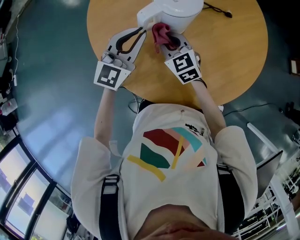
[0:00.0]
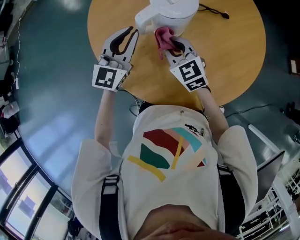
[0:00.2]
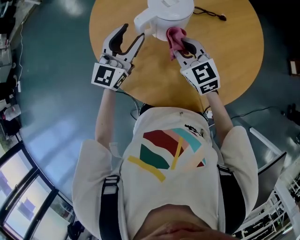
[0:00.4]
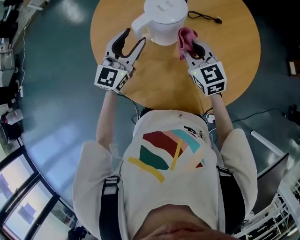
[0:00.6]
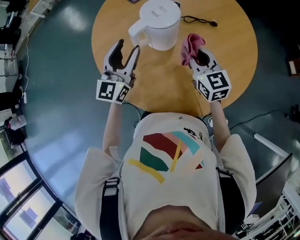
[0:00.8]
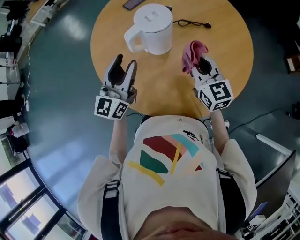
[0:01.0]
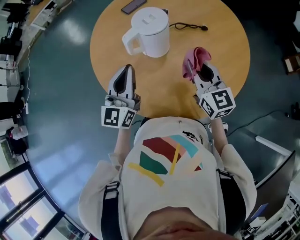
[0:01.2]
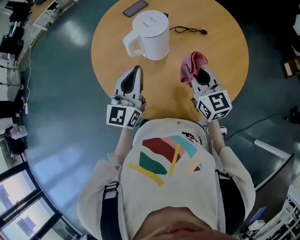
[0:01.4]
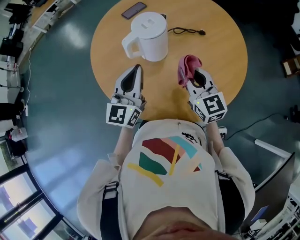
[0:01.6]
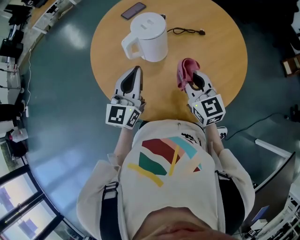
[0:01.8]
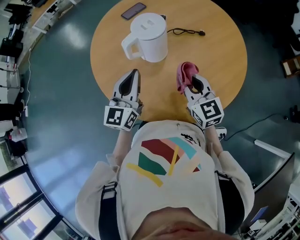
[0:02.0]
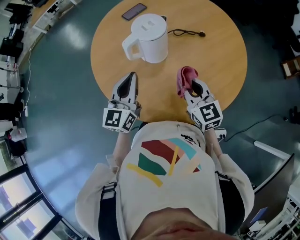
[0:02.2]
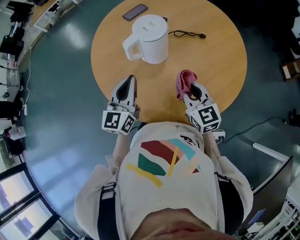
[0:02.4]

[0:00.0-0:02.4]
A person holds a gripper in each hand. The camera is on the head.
0:00.0 to 0:01.2: The left gripper travels backward and upward by some 15 cm, changes its angle by approximately 20 degrees, and opens, then closes again. The right gripper shifts some 25 cm to the right, upward and backward, and rotates some 30 degrees.
0:01.2 to 0:02.4: The right gripper ends up some 5 cm from where it was.

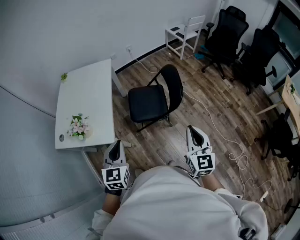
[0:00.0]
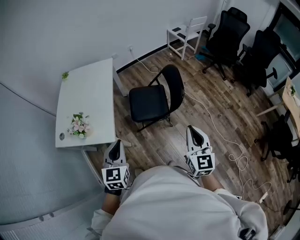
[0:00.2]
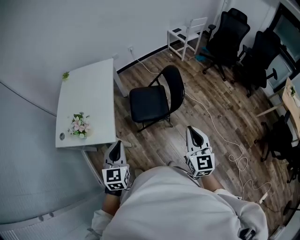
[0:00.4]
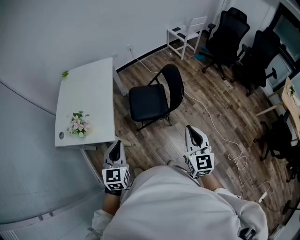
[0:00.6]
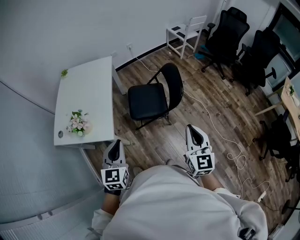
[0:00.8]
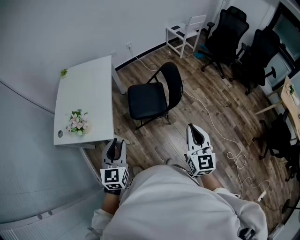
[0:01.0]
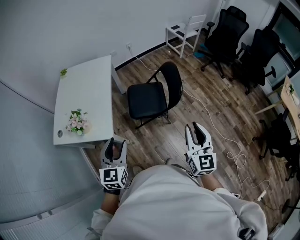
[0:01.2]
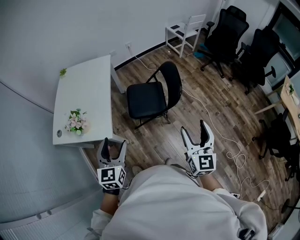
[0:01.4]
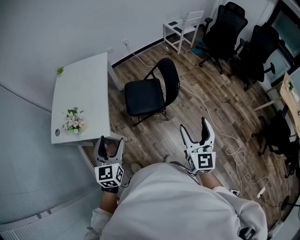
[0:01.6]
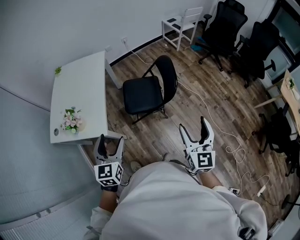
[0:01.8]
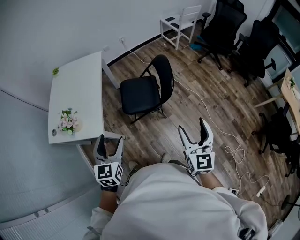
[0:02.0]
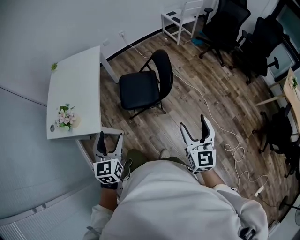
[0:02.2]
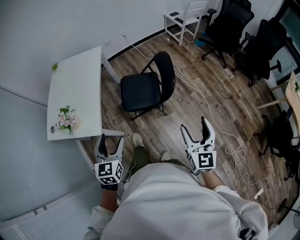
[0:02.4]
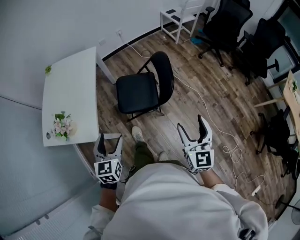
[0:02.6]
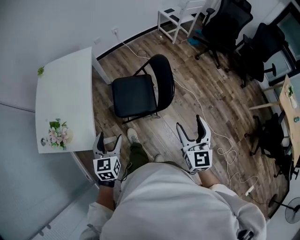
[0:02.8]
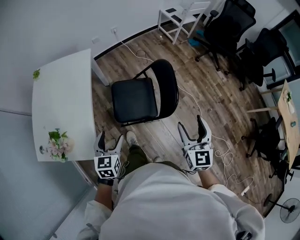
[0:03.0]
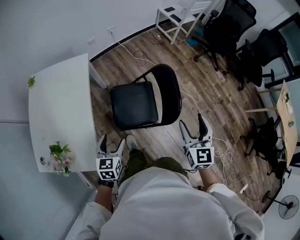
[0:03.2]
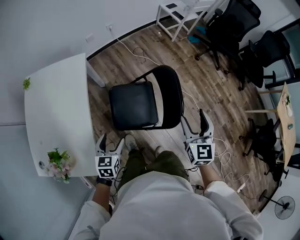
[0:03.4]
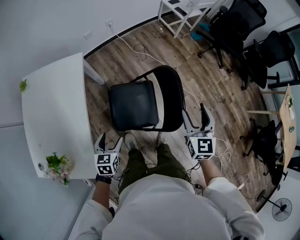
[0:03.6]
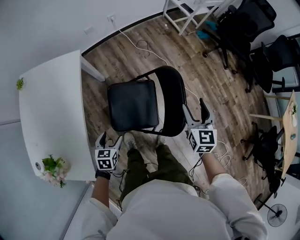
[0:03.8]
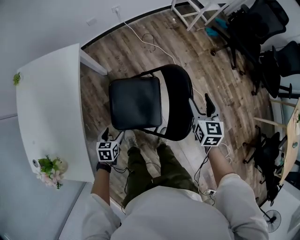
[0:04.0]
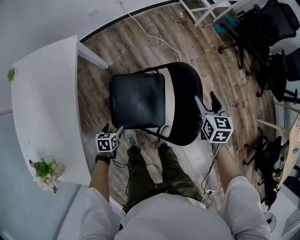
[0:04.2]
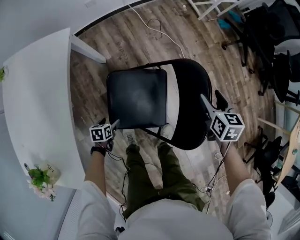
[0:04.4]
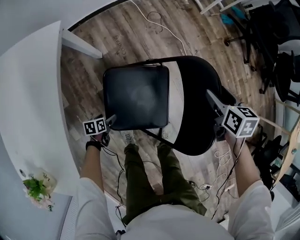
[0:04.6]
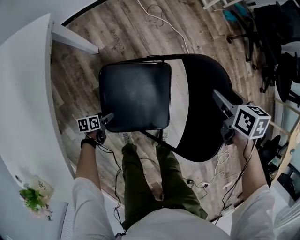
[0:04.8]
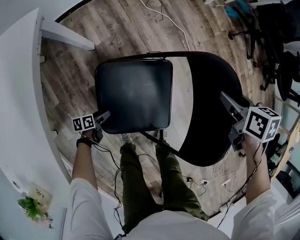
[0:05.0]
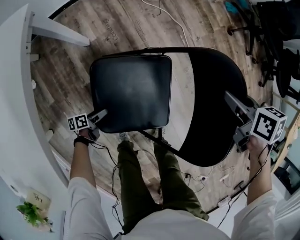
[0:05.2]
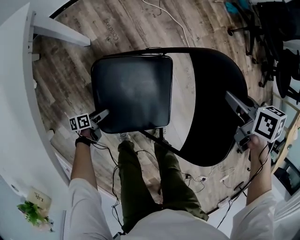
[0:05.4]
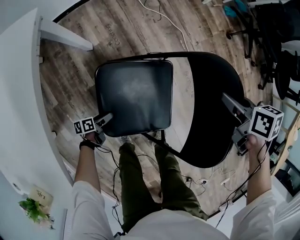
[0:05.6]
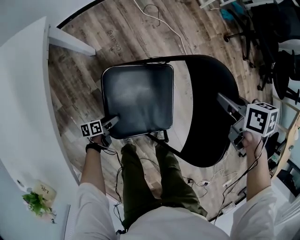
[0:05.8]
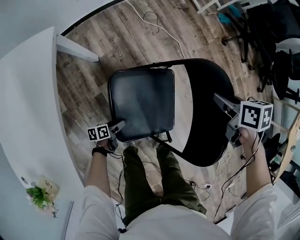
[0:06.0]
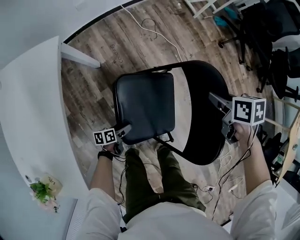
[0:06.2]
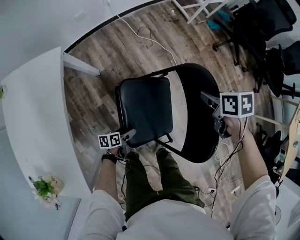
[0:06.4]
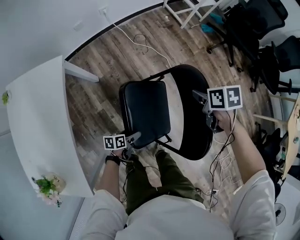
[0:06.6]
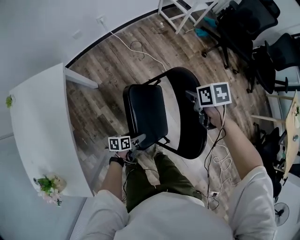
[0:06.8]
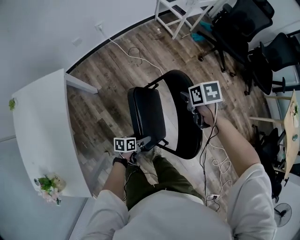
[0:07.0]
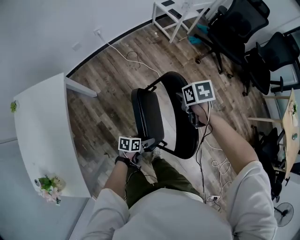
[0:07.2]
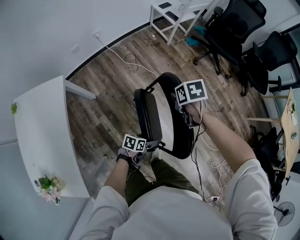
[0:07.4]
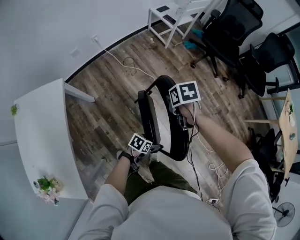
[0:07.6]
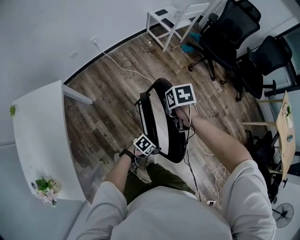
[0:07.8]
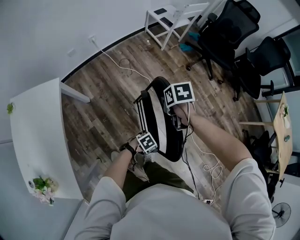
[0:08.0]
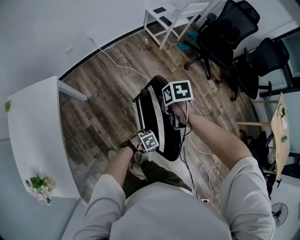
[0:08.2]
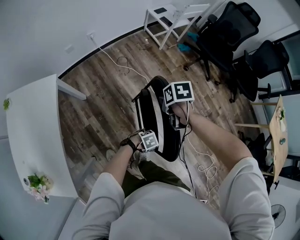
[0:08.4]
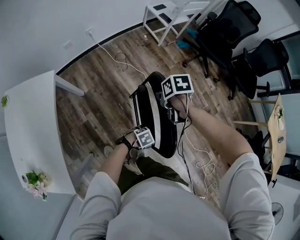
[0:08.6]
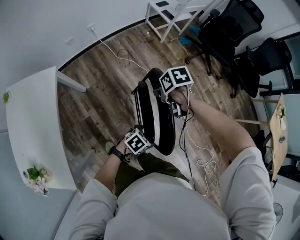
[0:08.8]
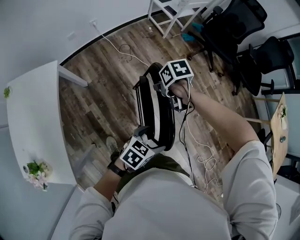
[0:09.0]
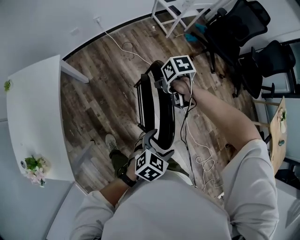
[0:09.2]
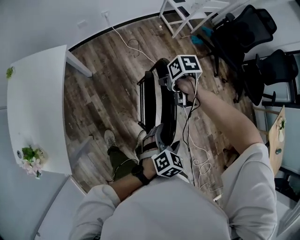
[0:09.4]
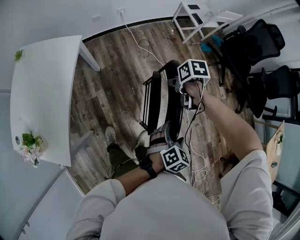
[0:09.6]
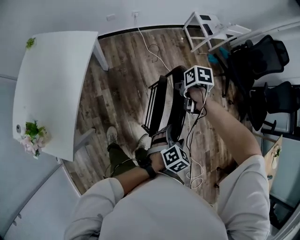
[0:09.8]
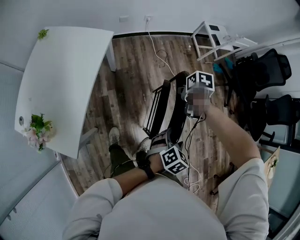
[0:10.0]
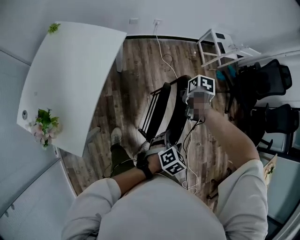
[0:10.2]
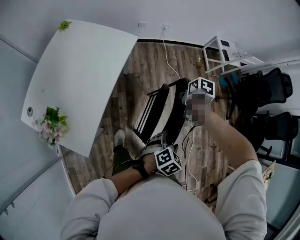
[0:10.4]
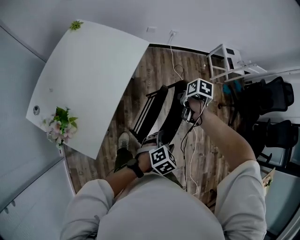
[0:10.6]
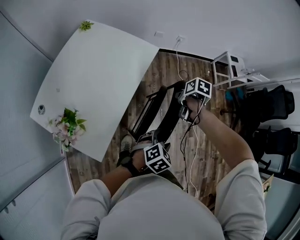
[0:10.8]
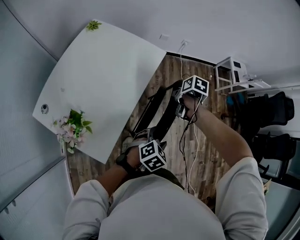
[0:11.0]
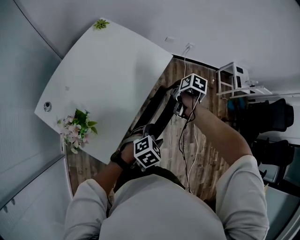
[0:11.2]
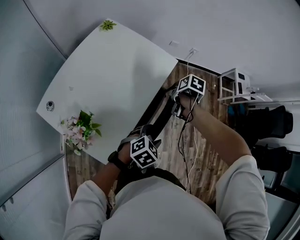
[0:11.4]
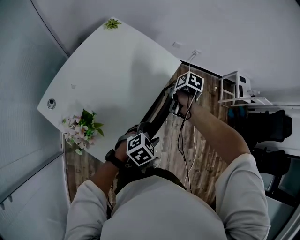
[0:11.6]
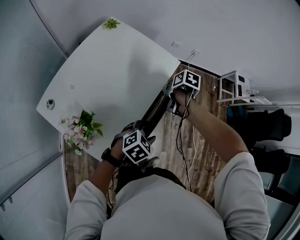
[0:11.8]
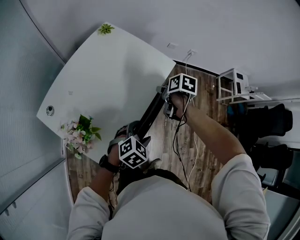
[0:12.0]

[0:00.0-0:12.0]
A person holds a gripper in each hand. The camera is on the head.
0:00.0 to 0:01.6: The left gripper opens its fingers. Meanwhile the right gripper opens.
0:01.6 to 0:03.0: The right gripper moves forward, about 25 cm. Meanwhile the left gripper moves forward and downward, about 25 cm.
0:03.0 to 0:04.4: The right gripper heads forward and downward, covering about 50 cm, and tilts its fingers approximately 30 degrees downward. Meanwhile the left gripper shifts some 50 cm downward and forward, and tips its fingers downward by roughly 30 degrees.
0:04.4 to 0:06.0: The left gripper goes some 5 cm downward, and rotates some 30 degrees. The right gripper turns by approximately 30 degrees, and closes.
0:06.0 to 0:07.6: The right gripper shifts roughly 10 cm upward; the left gripper moves some 40 cm, and rotates around the line of its fingers by approximately 50 degrees, clockwise from behind.
0:07.6 to 0:09.0: The left gripper moves upward, about 20 cm, and changes its angle by roughly 20 degrees.
0:09.0 to 0:10.4: The left gripper moves some 20 cm, and changes its angle by about 30 degrees. The right gripper shifts by approximately 25 cm.
0:10.4 to 0:12.0: The right gripper shifts by some 35 cm, and opens its fingers. Meanwhile the left gripper shifts by some 35 cm.

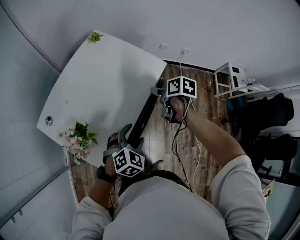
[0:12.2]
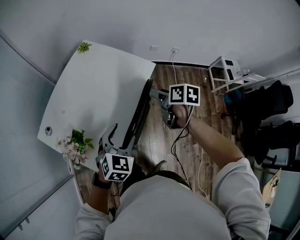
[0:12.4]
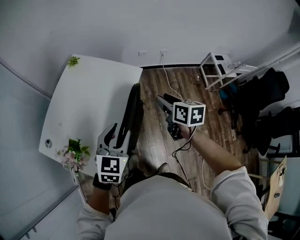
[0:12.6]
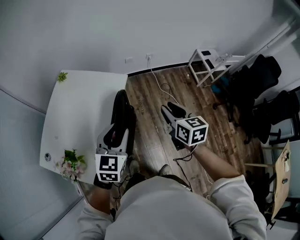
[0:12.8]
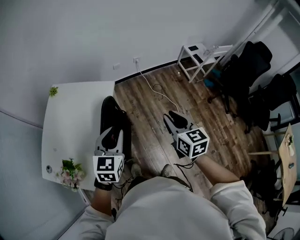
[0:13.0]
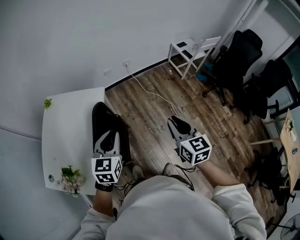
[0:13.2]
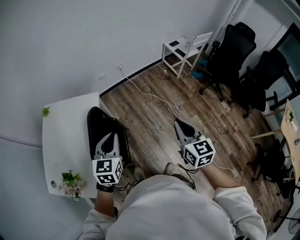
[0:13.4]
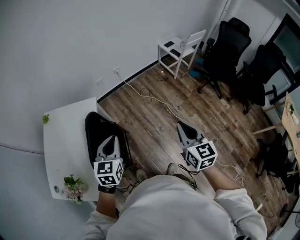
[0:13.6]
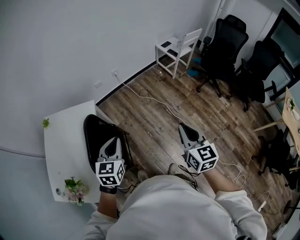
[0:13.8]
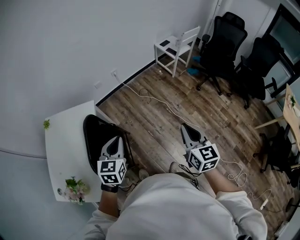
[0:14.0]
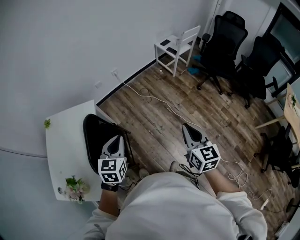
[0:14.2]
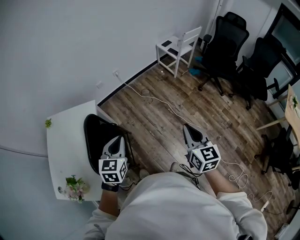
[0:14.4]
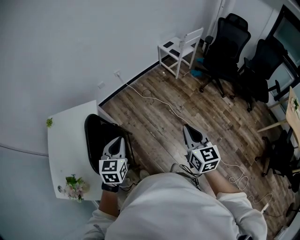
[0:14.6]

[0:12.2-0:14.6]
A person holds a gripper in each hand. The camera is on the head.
0:12.2 to 0:13.4: The right gripper shifts by some 50 cm, tilts its fingers approximately 40 degrees upward, and closes; the left gripper ends up roughly 25 cm from where it was, changes its angle by about 30 degrees, and closes.
0:13.4 to 0:14.6: The left gripper travels to the right by roughly 10 cm, while the right gripper heads to the right and backward, covering about 10 cm.

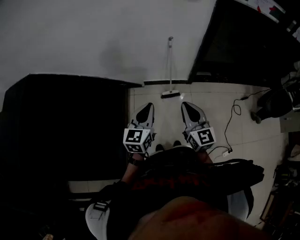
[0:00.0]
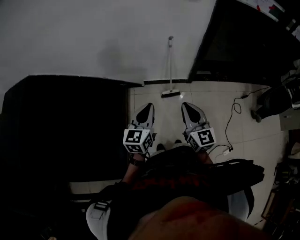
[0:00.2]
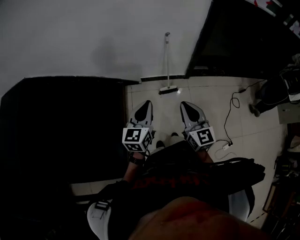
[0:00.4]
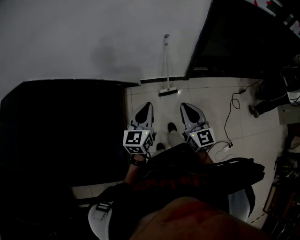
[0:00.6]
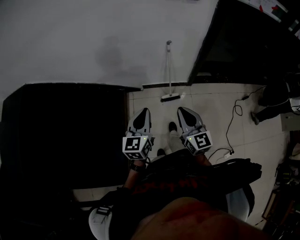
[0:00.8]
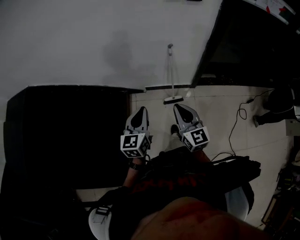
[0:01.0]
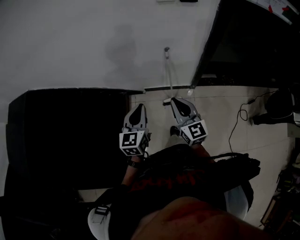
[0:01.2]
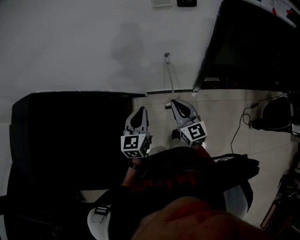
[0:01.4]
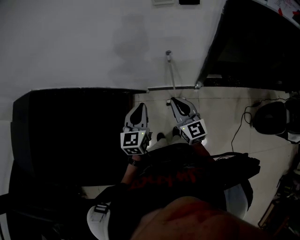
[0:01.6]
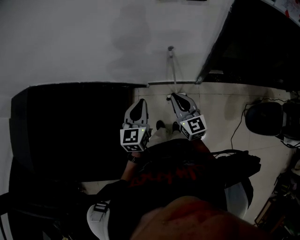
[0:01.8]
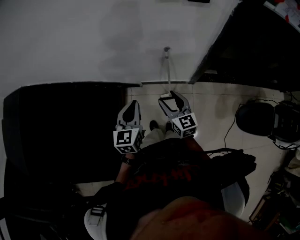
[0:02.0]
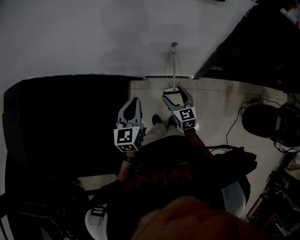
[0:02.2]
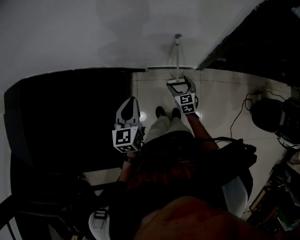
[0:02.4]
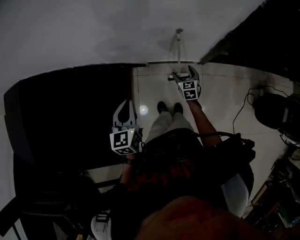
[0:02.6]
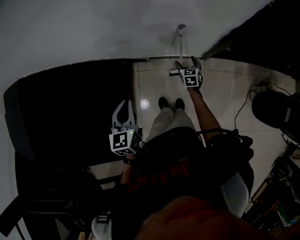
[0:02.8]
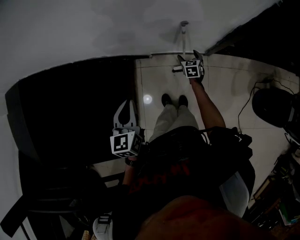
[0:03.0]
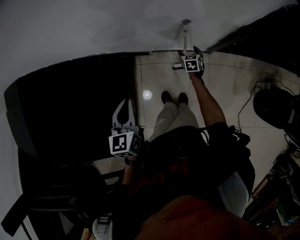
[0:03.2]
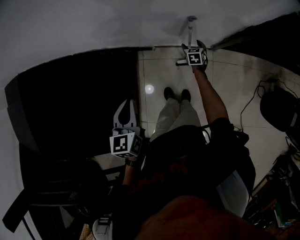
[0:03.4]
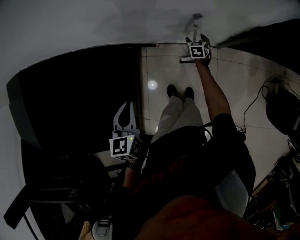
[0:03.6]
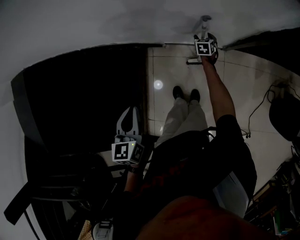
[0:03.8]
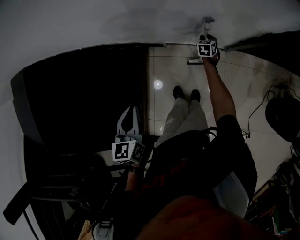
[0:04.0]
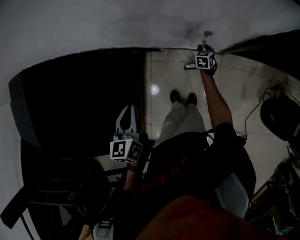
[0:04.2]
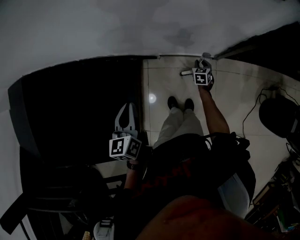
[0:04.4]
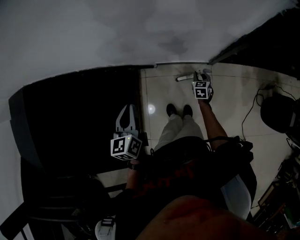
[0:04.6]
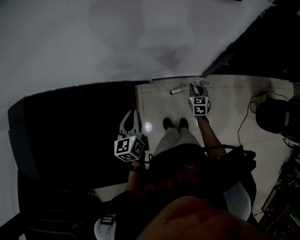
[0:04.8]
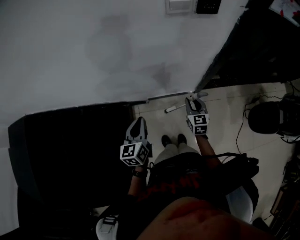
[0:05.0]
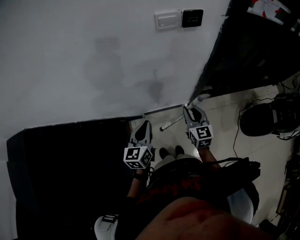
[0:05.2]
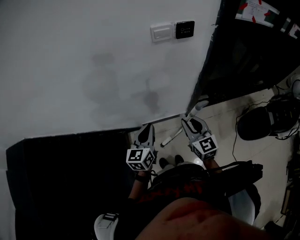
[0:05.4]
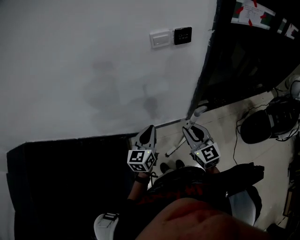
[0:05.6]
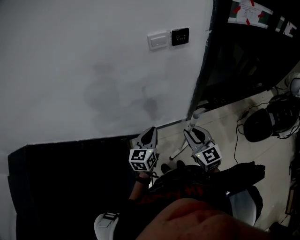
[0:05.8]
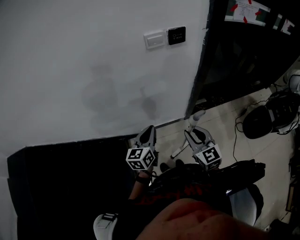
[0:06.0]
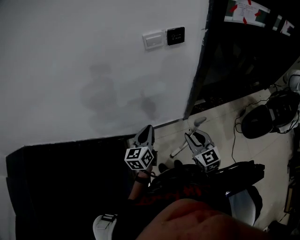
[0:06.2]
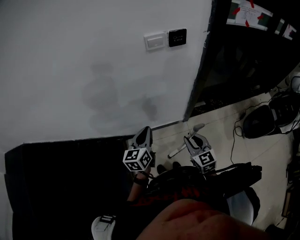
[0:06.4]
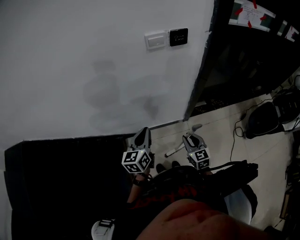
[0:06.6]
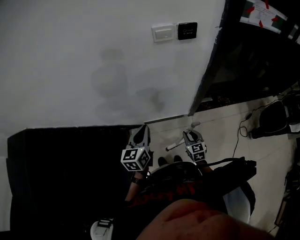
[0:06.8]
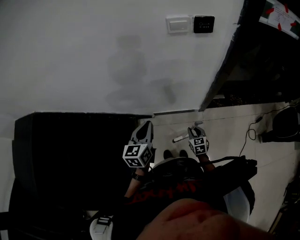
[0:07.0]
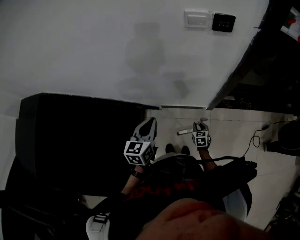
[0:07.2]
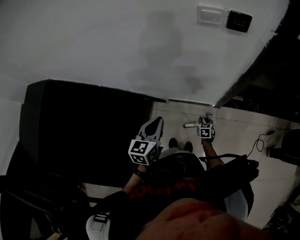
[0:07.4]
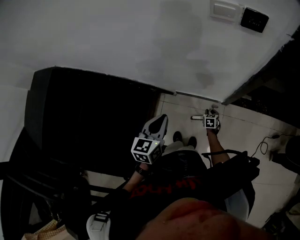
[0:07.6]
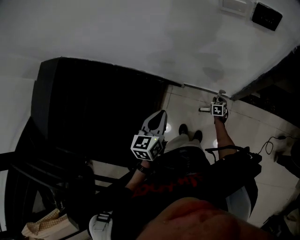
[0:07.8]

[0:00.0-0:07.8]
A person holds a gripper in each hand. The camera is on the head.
0:00.0 to 0:01.6: Both grippers travel together forward, about 25 cm.
0:01.6 to 0:03.2: The right gripper goes approximately 50 cm downward and forward, tips its fingers downward by about 40 degrees, and opens its fingers. Meanwhile the left gripper goes roughly 15 cm to the left, downward and forward.
0:03.2 to 0:04.6: The right gripper goes about 5 cm backward, and closes.
0:04.6 to 0:06.2: The right gripper travels upward and backward by approximately 40 cm, and changes its angle by approximately 30 degrees. Meanwhile the left gripper shifts some 15 cm to the right and upward, and rotates approximately 30 degrees.
0:06.2 to 0:07.8: The right gripper is displaced downward and forward by about 50 cm, and points its fingers some 40 degrees further downward, while the left gripper heads to the left and backward, covering roughly 10 cm, and changes its angle by about 30 degrees.
